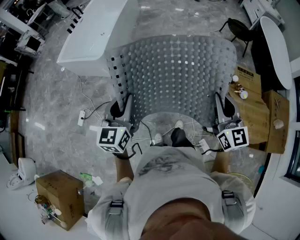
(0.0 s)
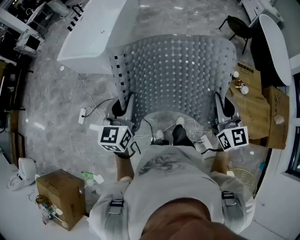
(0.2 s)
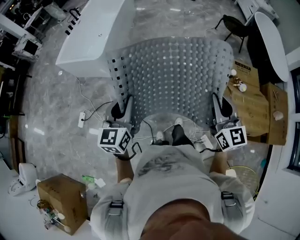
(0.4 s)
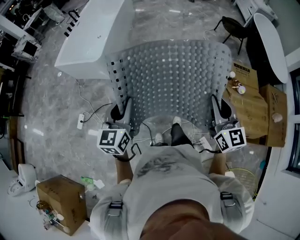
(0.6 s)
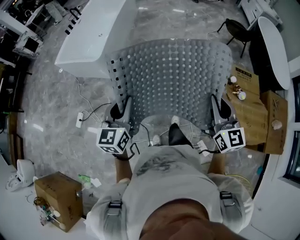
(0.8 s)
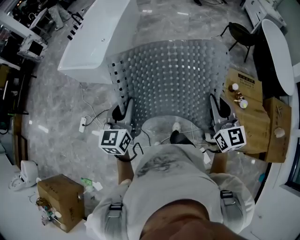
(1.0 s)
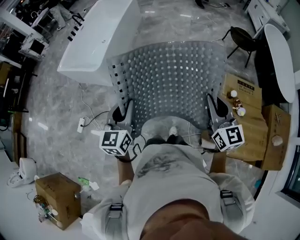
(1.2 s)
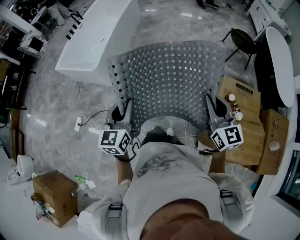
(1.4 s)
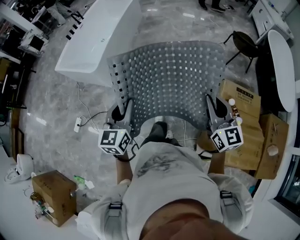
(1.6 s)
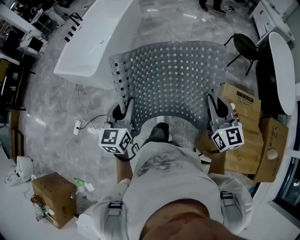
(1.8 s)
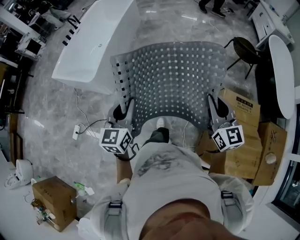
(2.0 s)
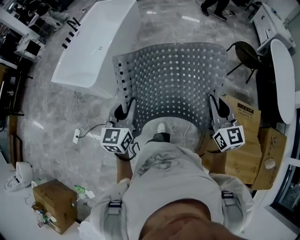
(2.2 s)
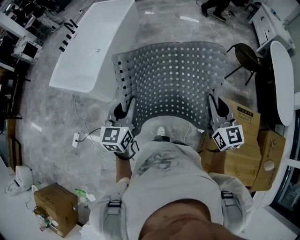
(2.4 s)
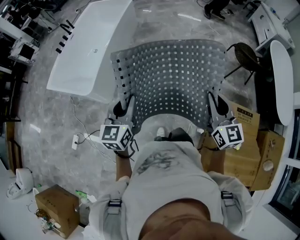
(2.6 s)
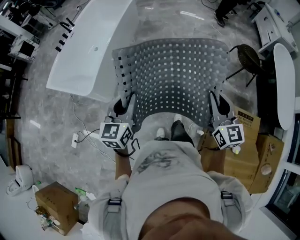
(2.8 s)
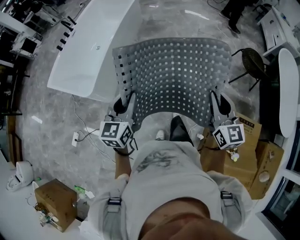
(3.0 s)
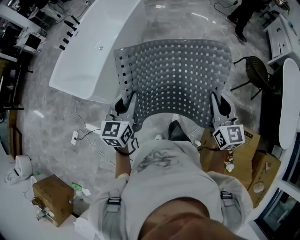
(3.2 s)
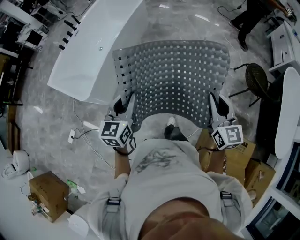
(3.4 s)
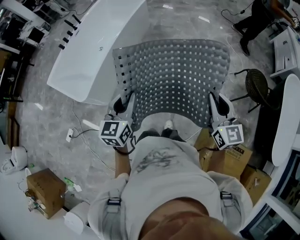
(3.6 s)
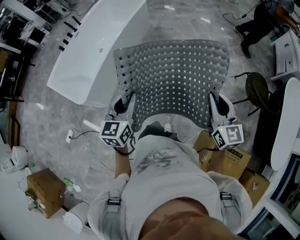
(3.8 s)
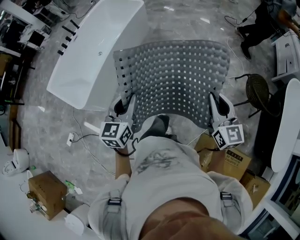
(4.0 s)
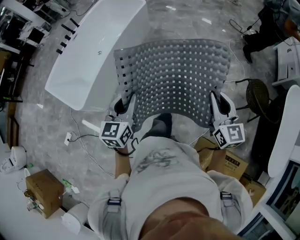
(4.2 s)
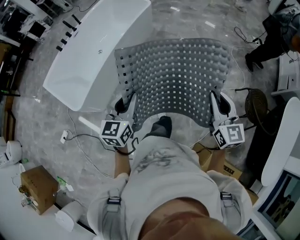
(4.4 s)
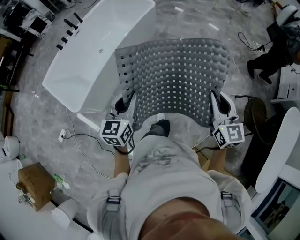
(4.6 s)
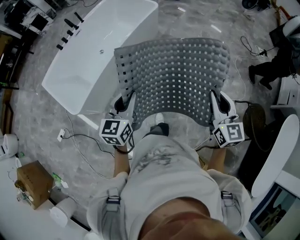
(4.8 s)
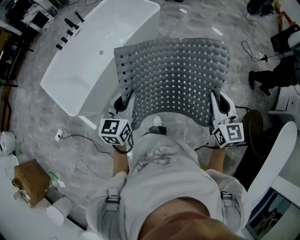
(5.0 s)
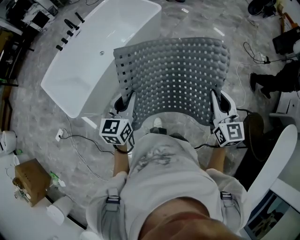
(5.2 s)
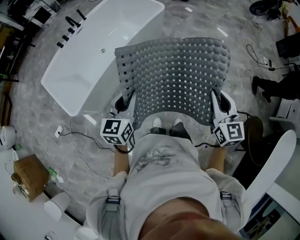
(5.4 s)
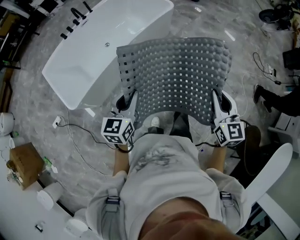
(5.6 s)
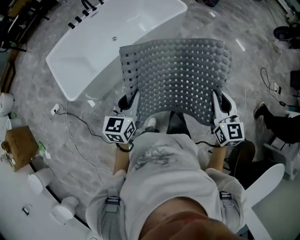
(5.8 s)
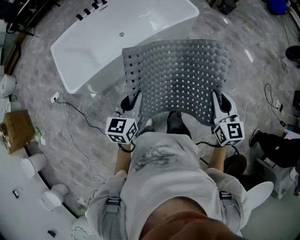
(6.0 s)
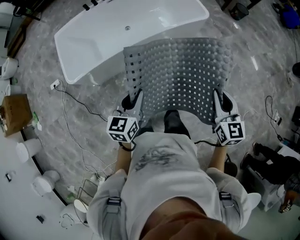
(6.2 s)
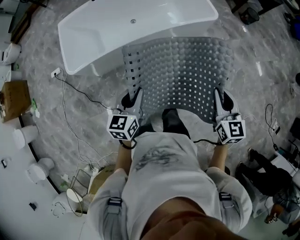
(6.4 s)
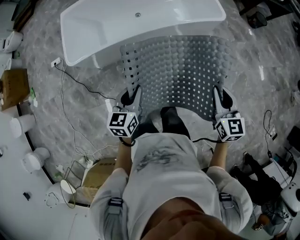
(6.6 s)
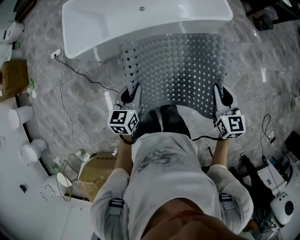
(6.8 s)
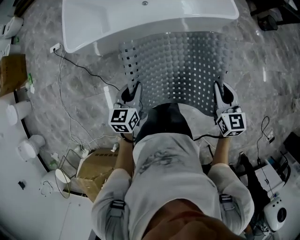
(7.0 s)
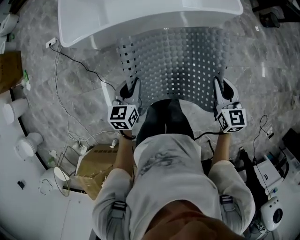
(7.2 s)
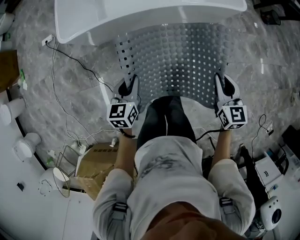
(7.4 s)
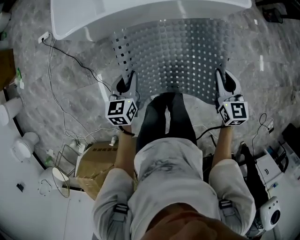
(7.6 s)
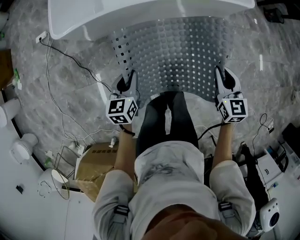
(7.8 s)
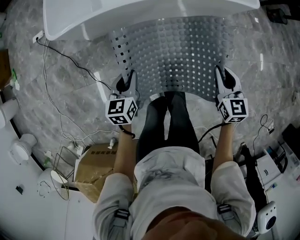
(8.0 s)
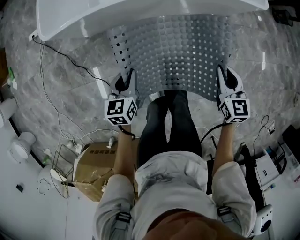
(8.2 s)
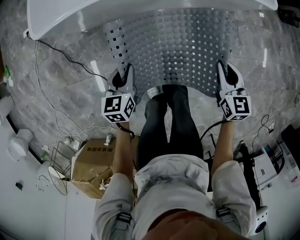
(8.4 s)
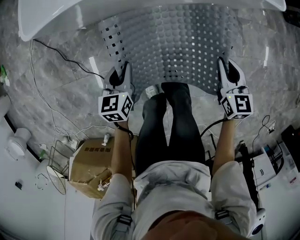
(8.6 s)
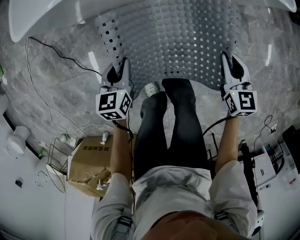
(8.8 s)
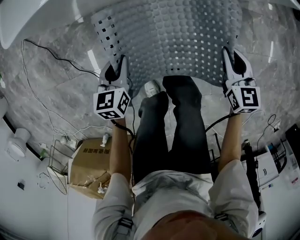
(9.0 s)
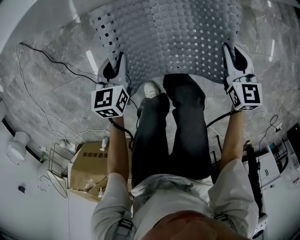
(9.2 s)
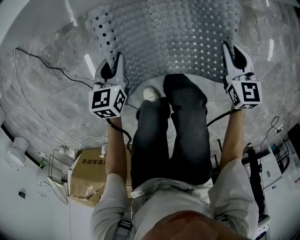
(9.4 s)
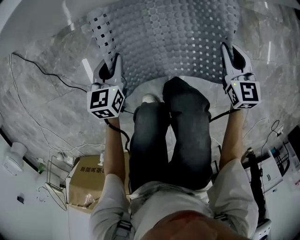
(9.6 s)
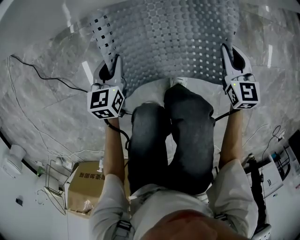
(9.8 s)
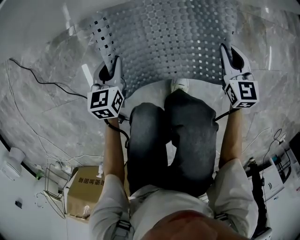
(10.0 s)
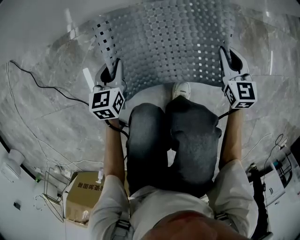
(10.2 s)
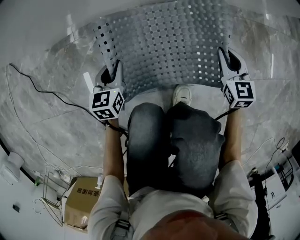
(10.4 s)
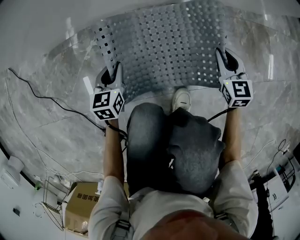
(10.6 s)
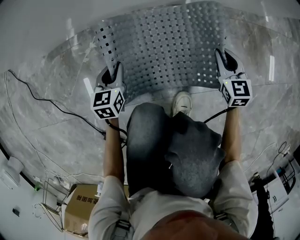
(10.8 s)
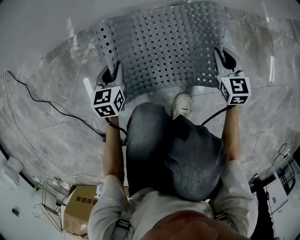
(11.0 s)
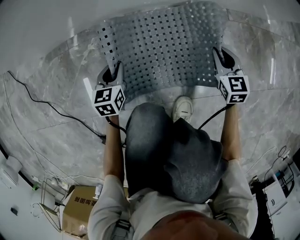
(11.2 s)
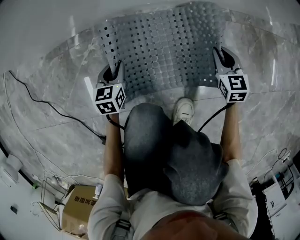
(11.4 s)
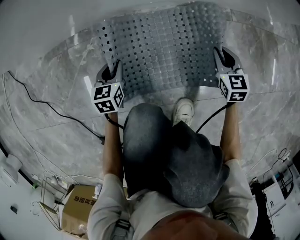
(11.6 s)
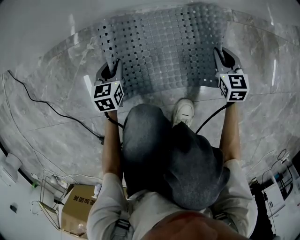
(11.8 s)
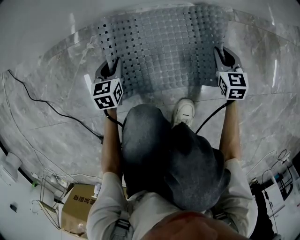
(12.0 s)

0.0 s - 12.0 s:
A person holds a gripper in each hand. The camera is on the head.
0.0 s - 1.6 s: The grippers both shift forward and to the right by roughly 20 cm.
1.6 s - 3.0 s: The two grippers go some 35 cm forward.
3.0 s - 4.4 s: The right gripper travels forward by about 35 cm; the left gripper is displaced forward and to the right by approximately 30 cm.
4.4 s - 6.0 s: The right gripper changes place by about 40 cm, and swivels roughly 30 degrees. Meanwhile the left gripper changes place by roughly 30 cm, and changes its angle by roughly 30 degrees.
6.0 s - 7.6 s: The left gripper heads downward and to the left, covering approximately 25 cm, and turns by roughly 30 degrees; the right gripper is displaced downward and forward by roughly 25 cm, and rotates roughly 30 degrees.
7.6 s - 9.0 s: The two grippers go about 35 cm downward.
9.0 s - 10.4 s: The grippers both shift downward by approximately 30 cm.
10.4 s - 12.0 s: The two grippers go about 15 cm downward.

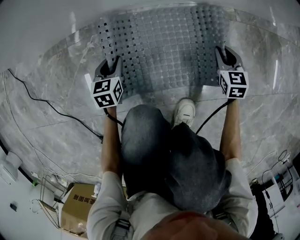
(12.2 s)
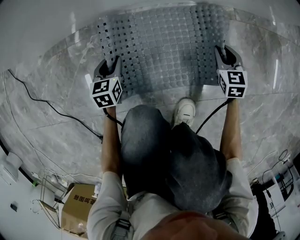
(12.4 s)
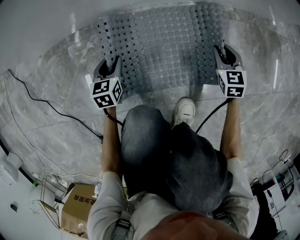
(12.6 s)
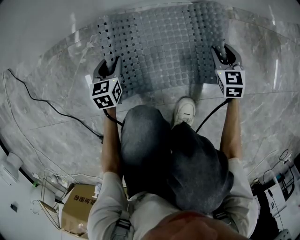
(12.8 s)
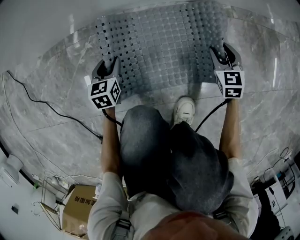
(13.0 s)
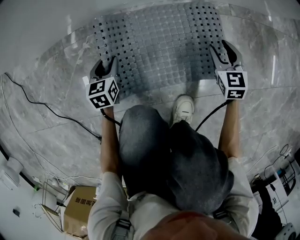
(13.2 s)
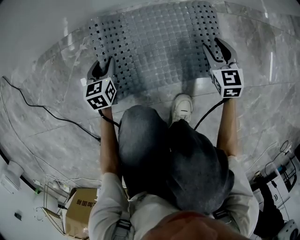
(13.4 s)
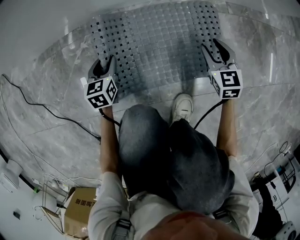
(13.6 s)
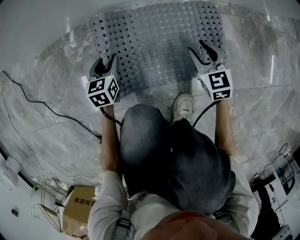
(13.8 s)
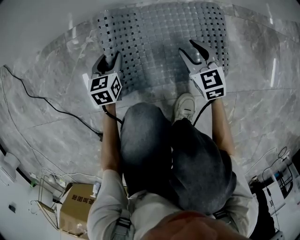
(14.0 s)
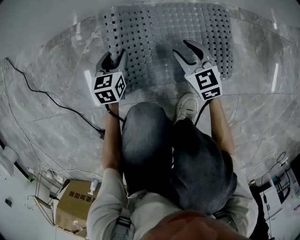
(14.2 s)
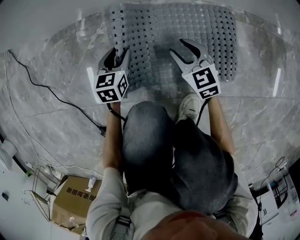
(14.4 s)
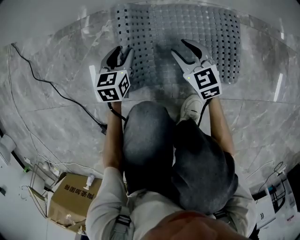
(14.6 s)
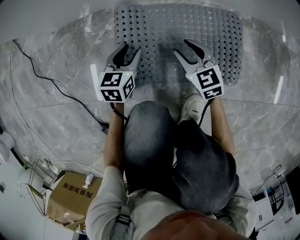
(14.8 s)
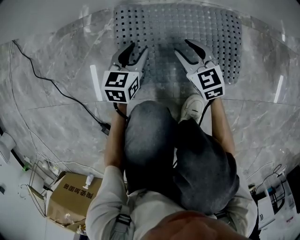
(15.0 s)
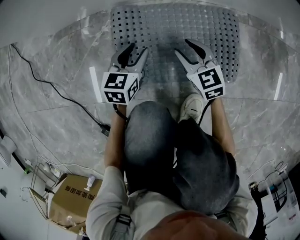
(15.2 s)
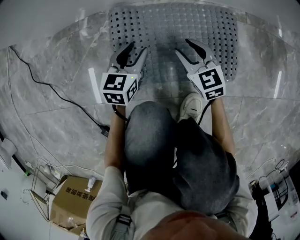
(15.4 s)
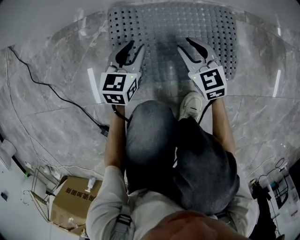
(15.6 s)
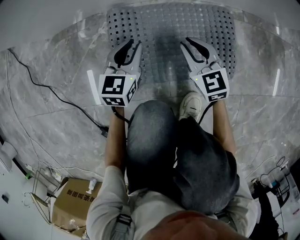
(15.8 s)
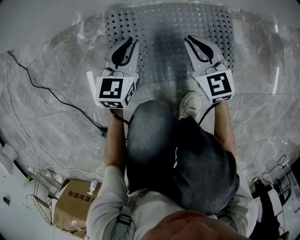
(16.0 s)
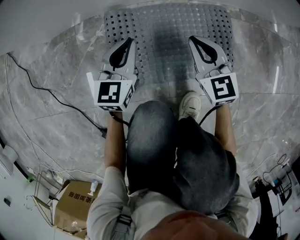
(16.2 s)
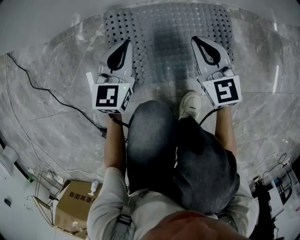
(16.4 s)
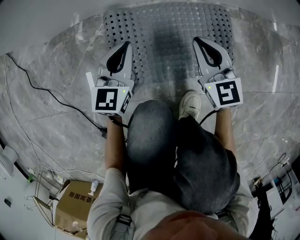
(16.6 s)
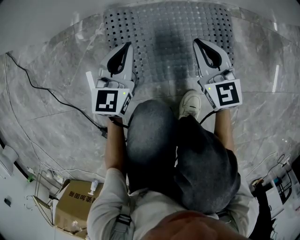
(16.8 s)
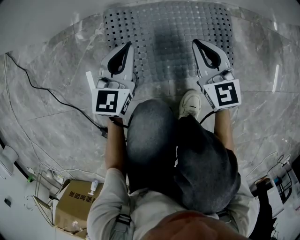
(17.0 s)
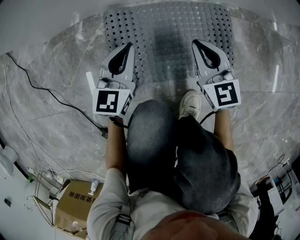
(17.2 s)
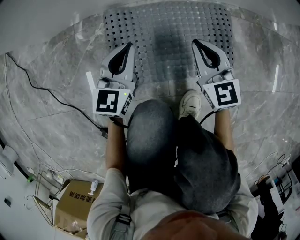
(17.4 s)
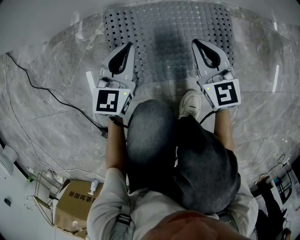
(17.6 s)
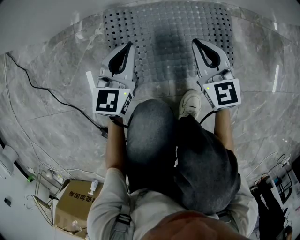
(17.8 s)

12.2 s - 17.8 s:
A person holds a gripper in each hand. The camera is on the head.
12.2 s - 13.6 s: The right gripper moves roughly 5 cm, and opens its fingers.
13.6 s - 15.0 s: The left gripper is displaced upward by approximately 5 cm; the right gripper goes some 20 cm to the left, and turns by roughly 20 degrees.
15.0 s - 16.4 s: The left gripper travels upward by roughly 10 cm, and closes up; the right gripper moves upward and to the right, roughly 10 cm, and closes its fingers.
16.4 s - 17.8 s: The grippers stay close to where they were, moving slightly.

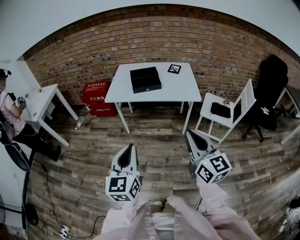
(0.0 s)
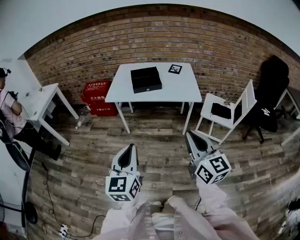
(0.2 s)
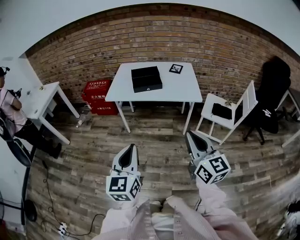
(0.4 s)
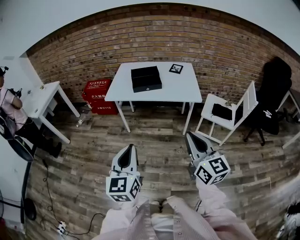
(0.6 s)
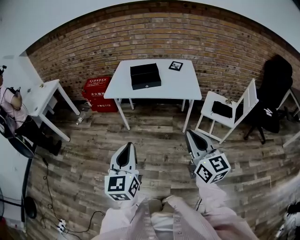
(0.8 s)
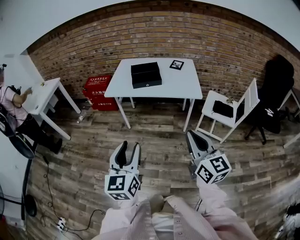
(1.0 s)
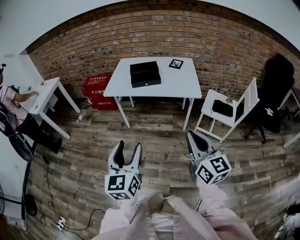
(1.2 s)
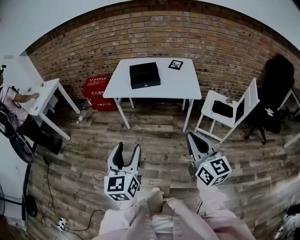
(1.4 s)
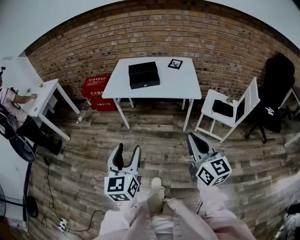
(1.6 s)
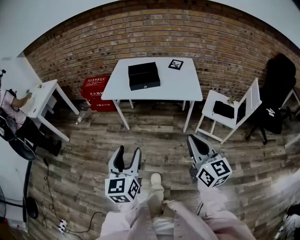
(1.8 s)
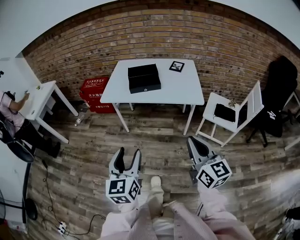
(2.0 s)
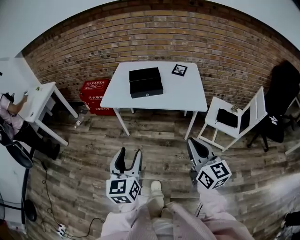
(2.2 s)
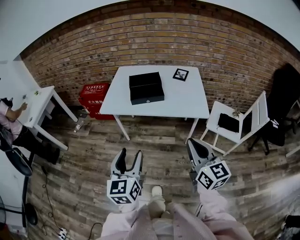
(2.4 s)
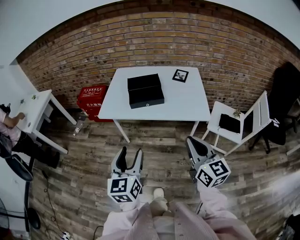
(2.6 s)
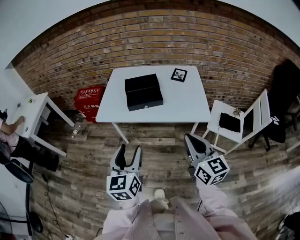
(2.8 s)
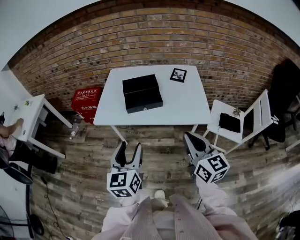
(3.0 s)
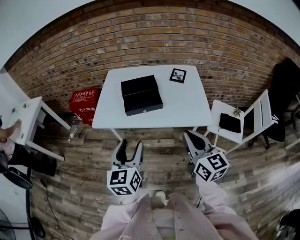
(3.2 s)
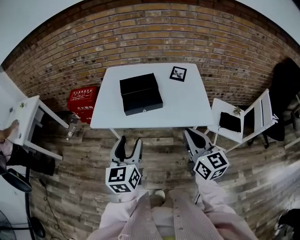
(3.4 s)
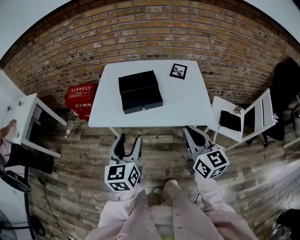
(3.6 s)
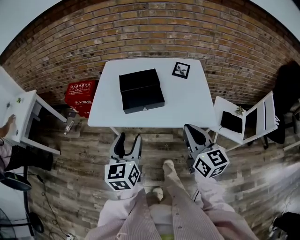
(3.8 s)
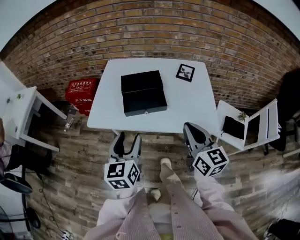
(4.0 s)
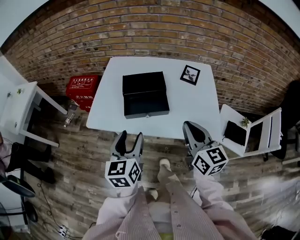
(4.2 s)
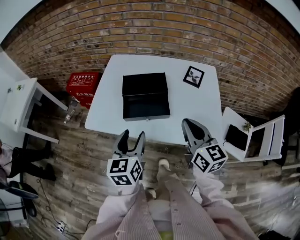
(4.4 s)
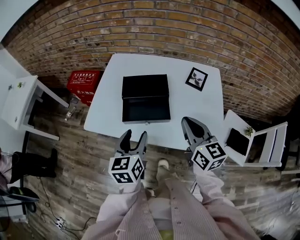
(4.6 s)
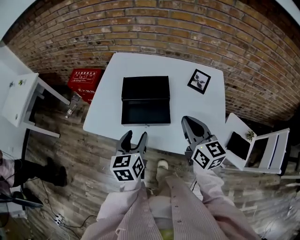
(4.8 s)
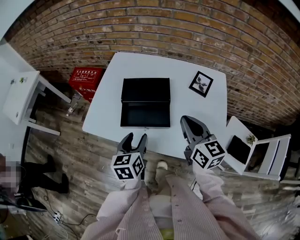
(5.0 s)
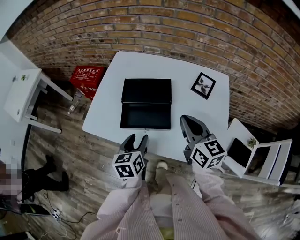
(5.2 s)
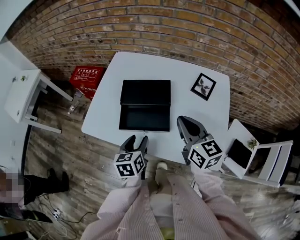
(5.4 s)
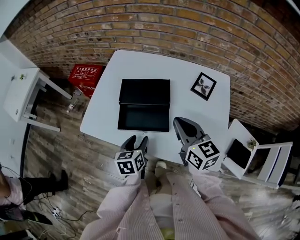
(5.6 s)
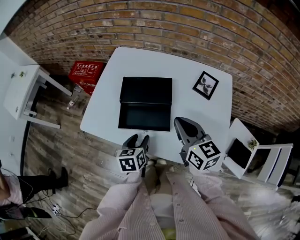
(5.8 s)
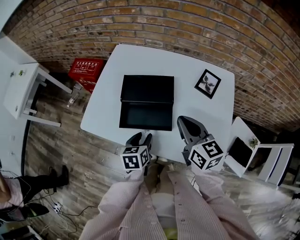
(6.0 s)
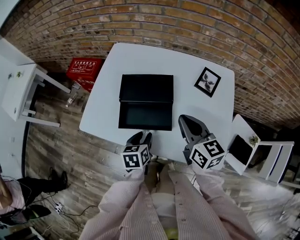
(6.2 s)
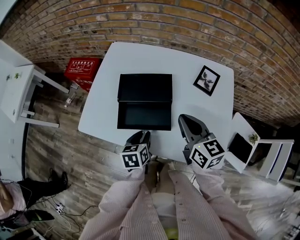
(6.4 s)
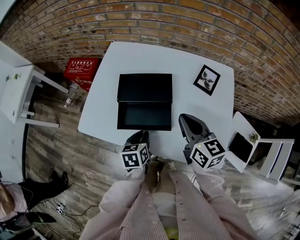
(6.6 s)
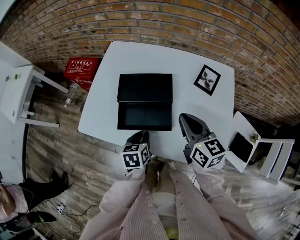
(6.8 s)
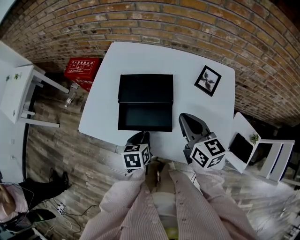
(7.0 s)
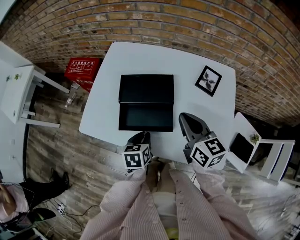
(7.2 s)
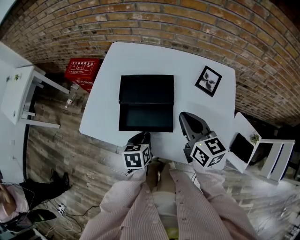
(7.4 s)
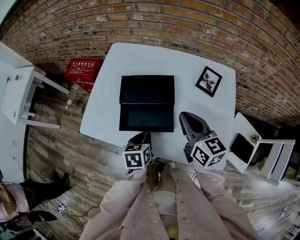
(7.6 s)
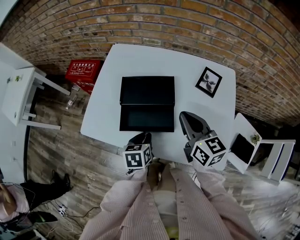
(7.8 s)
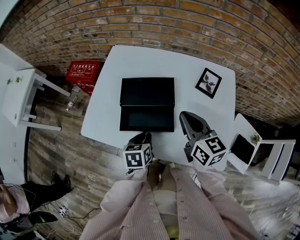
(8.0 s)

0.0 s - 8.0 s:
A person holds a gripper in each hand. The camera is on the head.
0.0 s - 1.6 s: The right gripper goes roughly 5 cm to the right; the left gripper opens.
1.6 s - 3.2 s: Both grippers travel together forward, roughly 30 cm.
3.2 s - 4.8 s: The left gripper travels forward and downward by approximately 25 cm. The right gripper travels forward by roughly 25 cm.
4.8 s - 6.4 s: The left gripper heads downward, covering some 15 cm, turns by roughly 20 degrees, and closes its fingers. The right gripper shifts approximately 5 cm forward.
6.4 s - 8.0 s: The grippers stay close to where they were, moving slightly.
